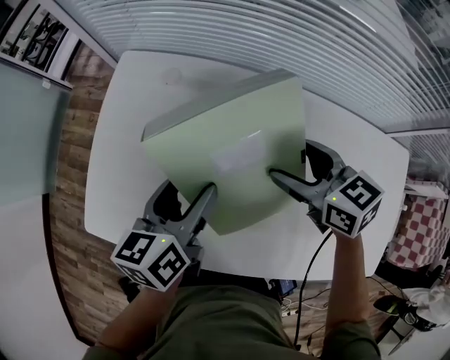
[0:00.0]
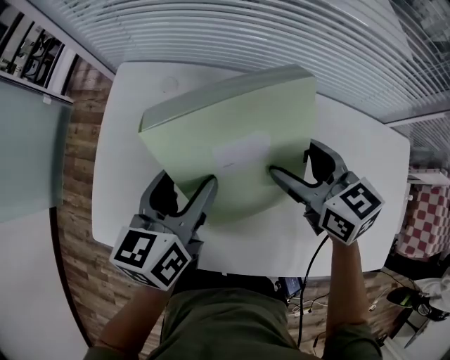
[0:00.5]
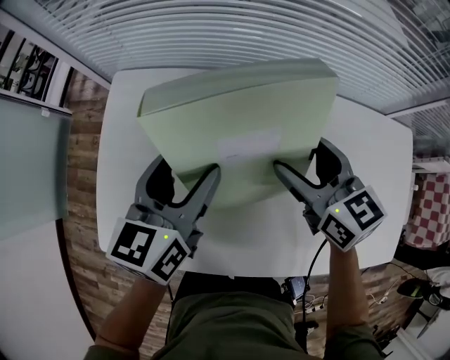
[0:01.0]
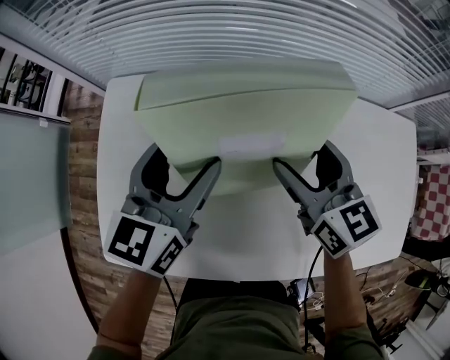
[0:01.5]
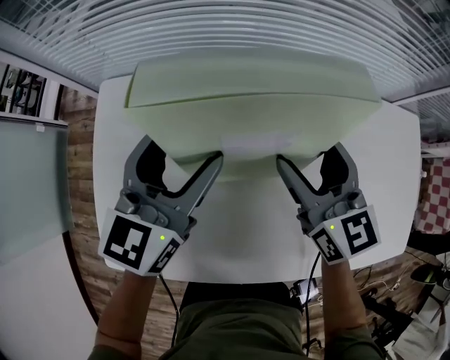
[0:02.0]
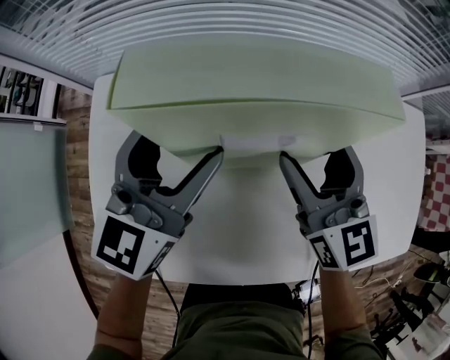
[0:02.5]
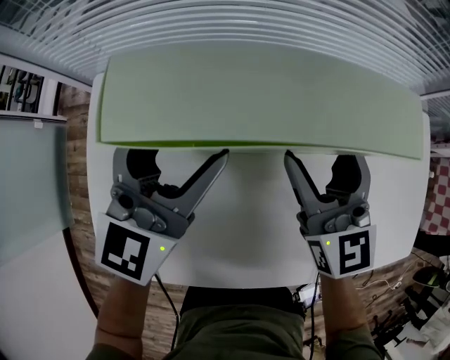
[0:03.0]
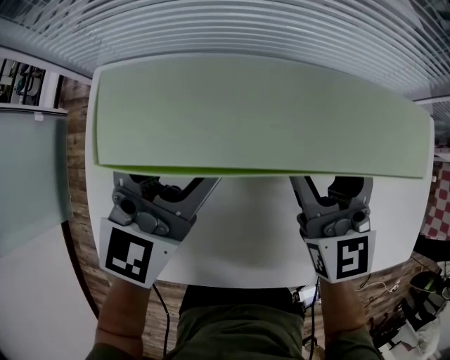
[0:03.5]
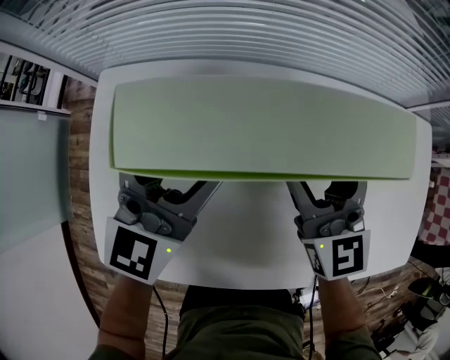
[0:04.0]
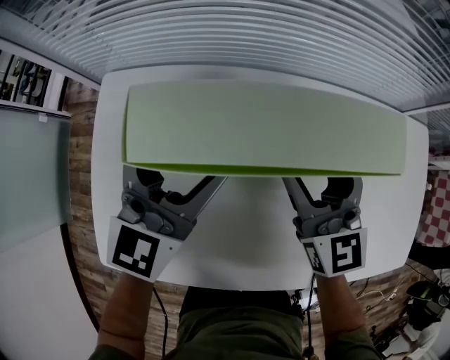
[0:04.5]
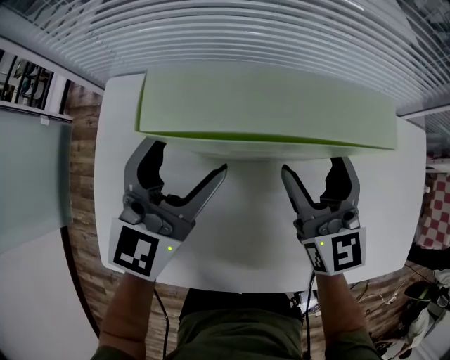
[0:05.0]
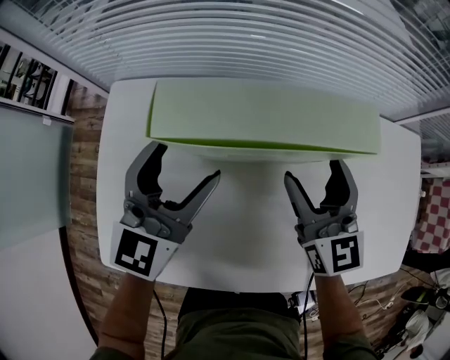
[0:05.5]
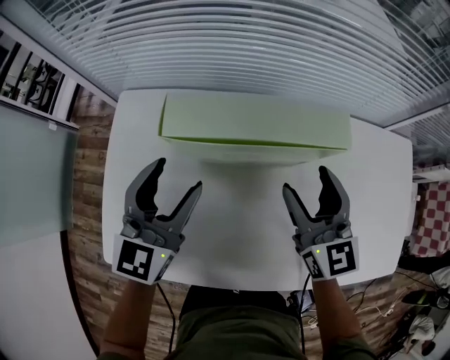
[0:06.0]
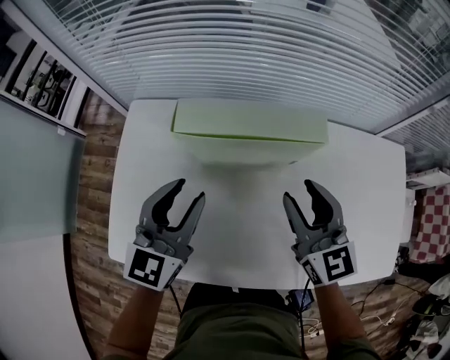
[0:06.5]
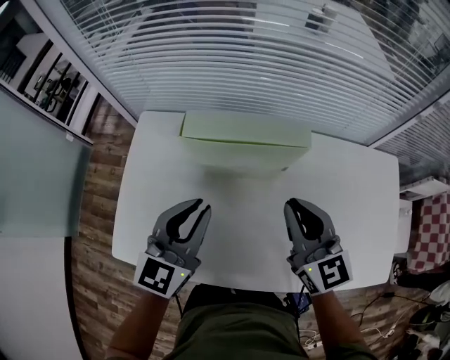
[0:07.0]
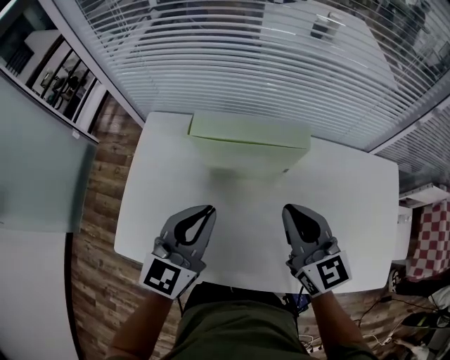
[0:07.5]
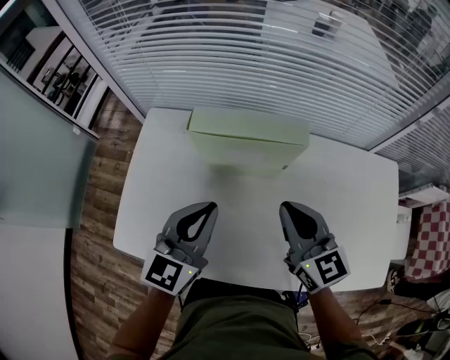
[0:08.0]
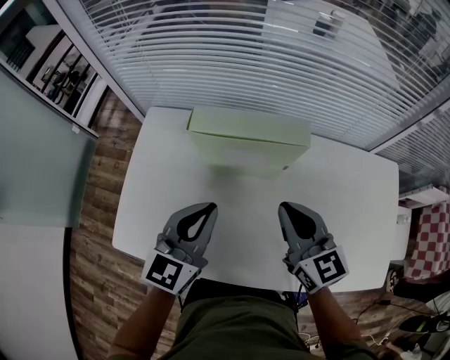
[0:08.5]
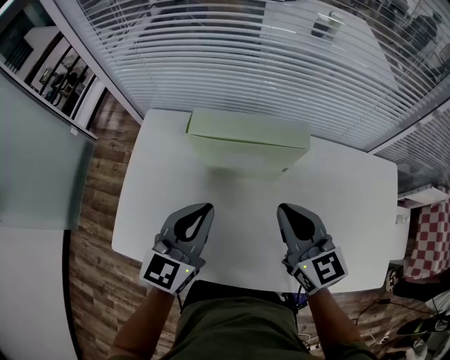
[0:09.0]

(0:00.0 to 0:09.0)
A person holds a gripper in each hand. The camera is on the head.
0:00.0 - 0:02.0: The right gripper turns by about 40 degrees, while the left gripper is displaced forward and upward by some 10 cm, and changes its angle by roughly 40 degrees.
0:02.0 - 0:04.5: The grippers move only a little.
0:04.5 - 0:07.0: The two grippers go roughly 15 cm backward and upward. The left gripper closes up. Meanwhile the right gripper closes up.
0:07.0 - 0:09.0: There are only small adjustments of the grippers.

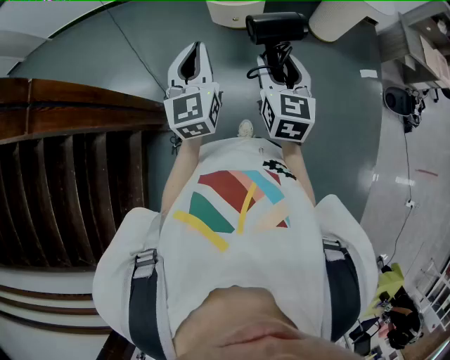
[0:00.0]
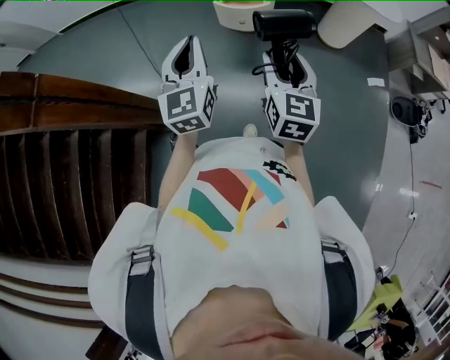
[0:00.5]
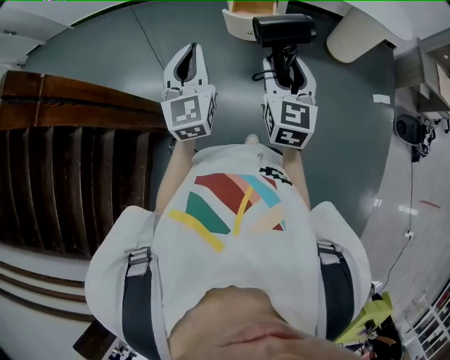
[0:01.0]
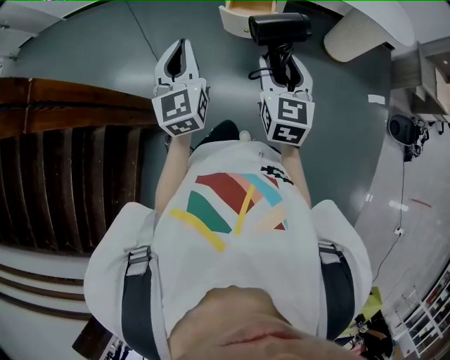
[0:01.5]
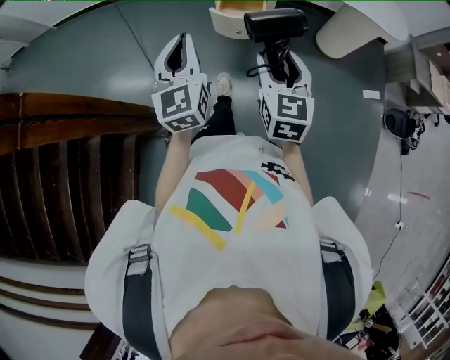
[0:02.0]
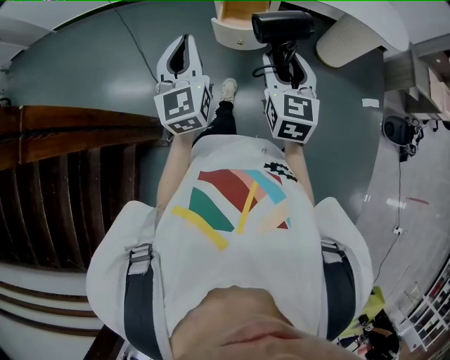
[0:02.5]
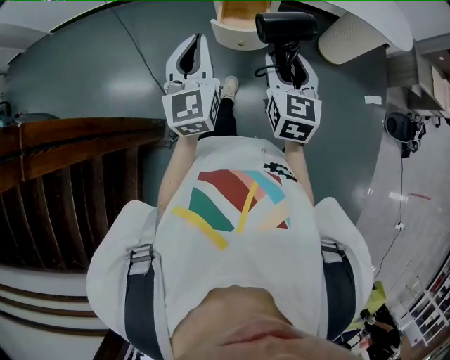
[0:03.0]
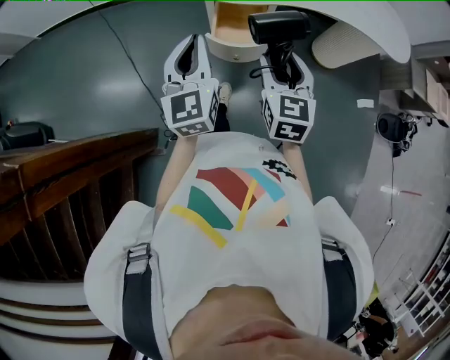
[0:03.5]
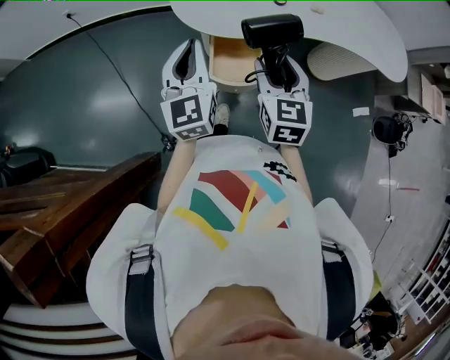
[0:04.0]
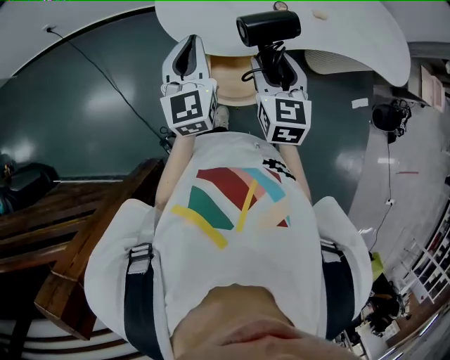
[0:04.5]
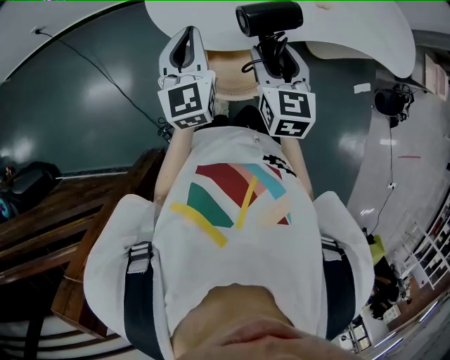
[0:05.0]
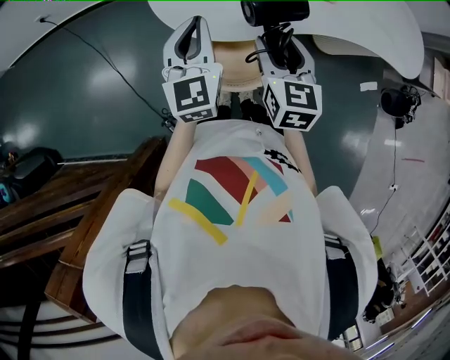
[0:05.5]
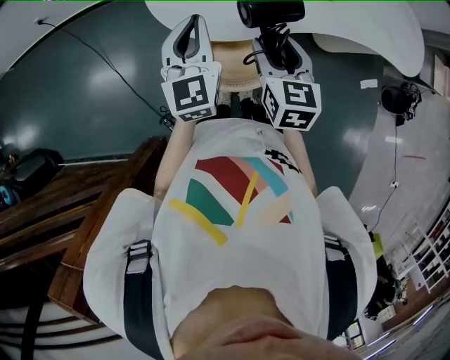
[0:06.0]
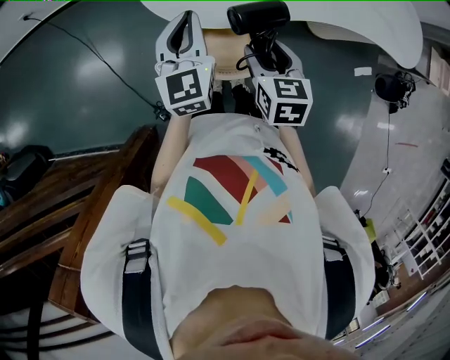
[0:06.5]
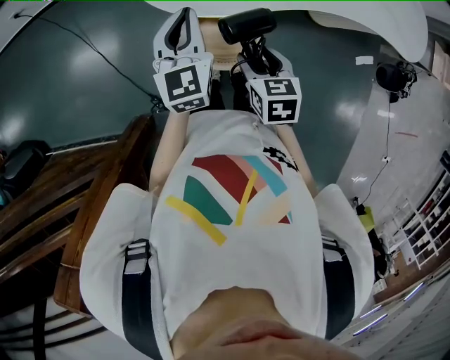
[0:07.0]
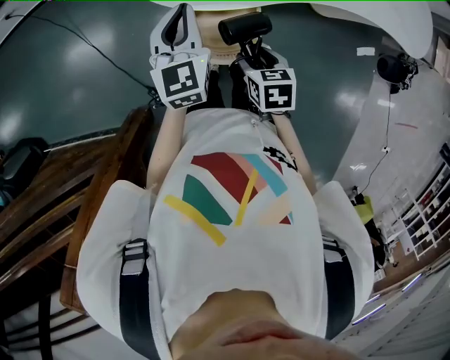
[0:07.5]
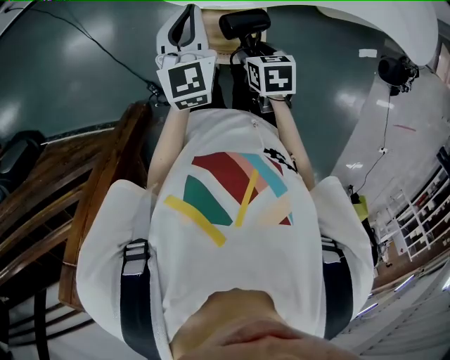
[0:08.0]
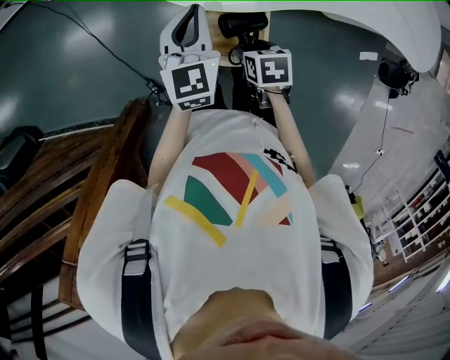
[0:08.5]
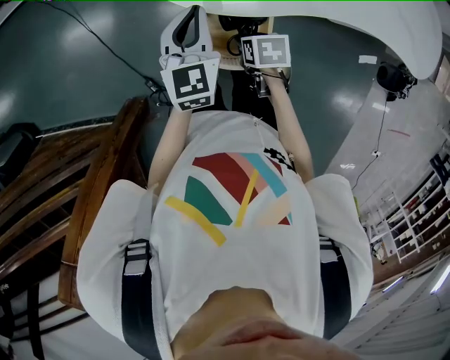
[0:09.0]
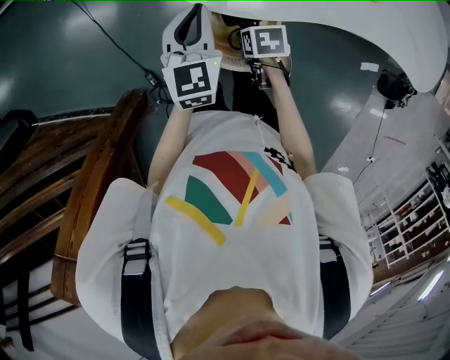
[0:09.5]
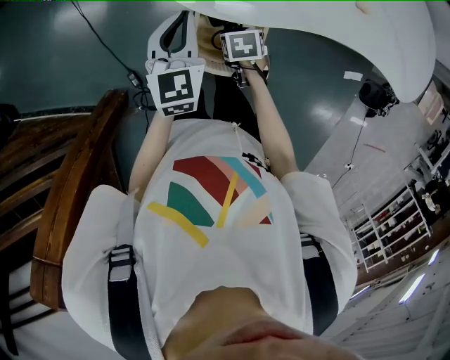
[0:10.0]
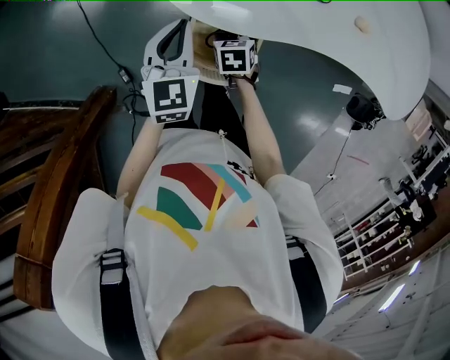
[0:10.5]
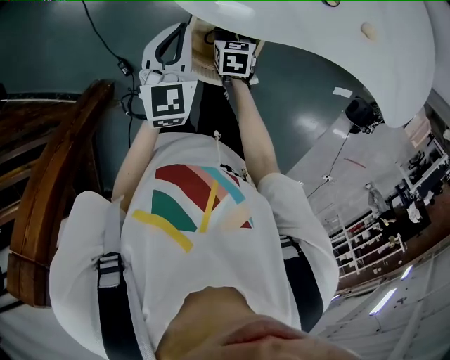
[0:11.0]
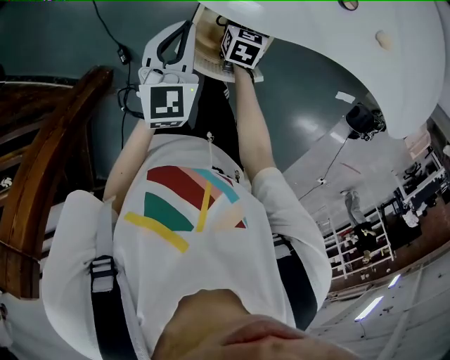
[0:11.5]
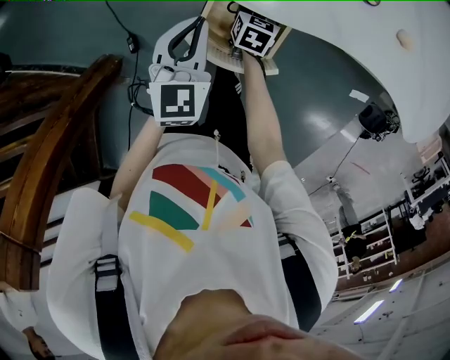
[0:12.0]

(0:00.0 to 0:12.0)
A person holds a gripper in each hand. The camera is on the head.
0:00.0 - 0:02.0: The grippers both shift forward by roughly 10 cm.
0:02.0 - 0:04.0: Both grippers move forward, roughly 30 cm.
0:04.0 - 0:06.0: The grippers both shift forward by roughly 15 cm.
0:06.0 - 0:08.0: The left gripper heads downward, covering roughly 10 cm, while the right gripper is displaced downward and backward by roughly 20 cm, and angles its fingers downward, by some 40 degrees.
0:08.0 - 0:10.0: The right gripper travels downward by roughly 10 cm.
0:10.0 - 0:12.0: The left gripper moves roughly 10 cm. Meanwhile the right gripper travels downward by roughly 5 cm, and changes its angle by roughly 30 degrees.

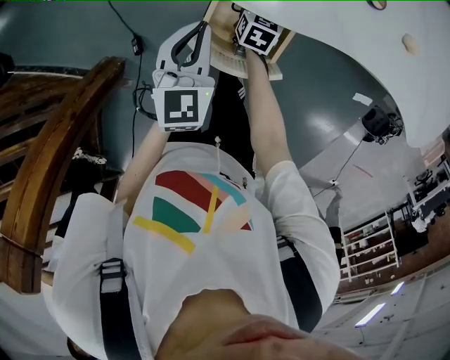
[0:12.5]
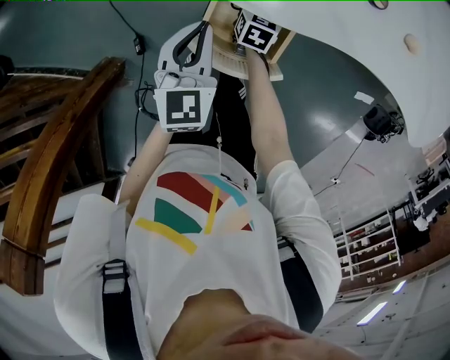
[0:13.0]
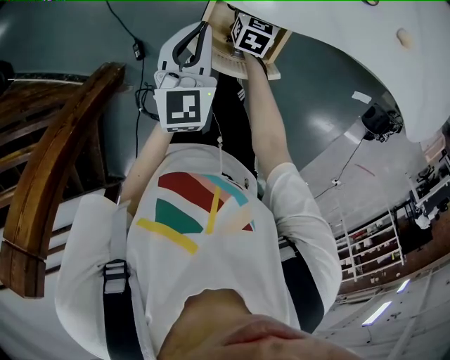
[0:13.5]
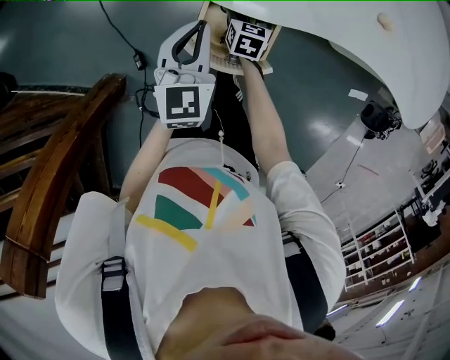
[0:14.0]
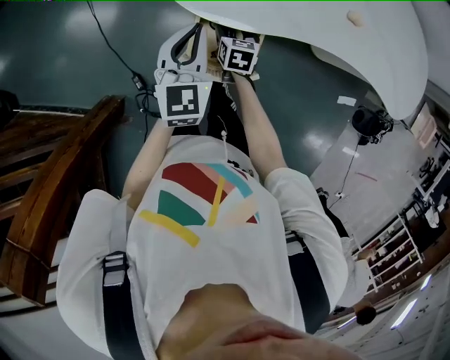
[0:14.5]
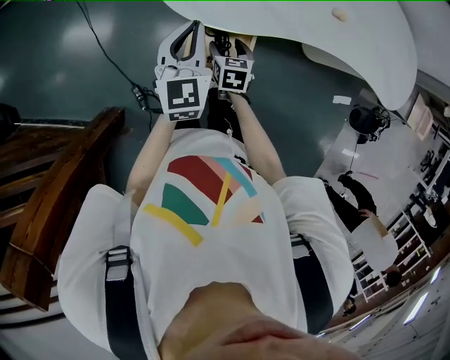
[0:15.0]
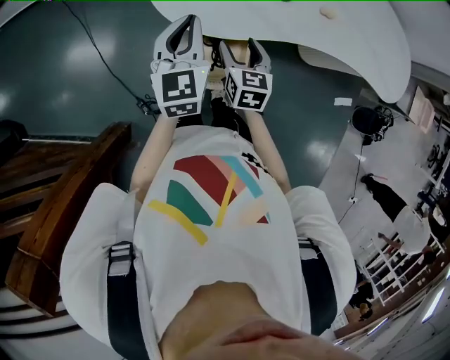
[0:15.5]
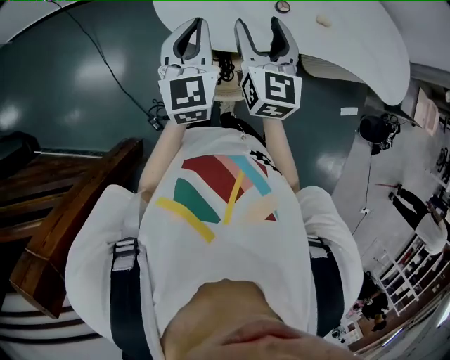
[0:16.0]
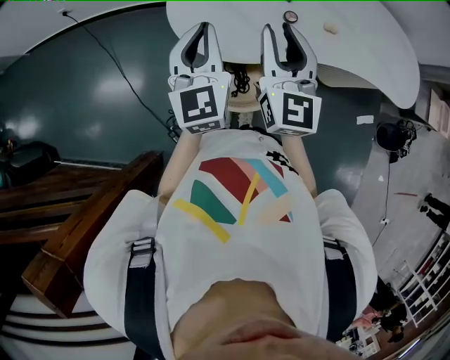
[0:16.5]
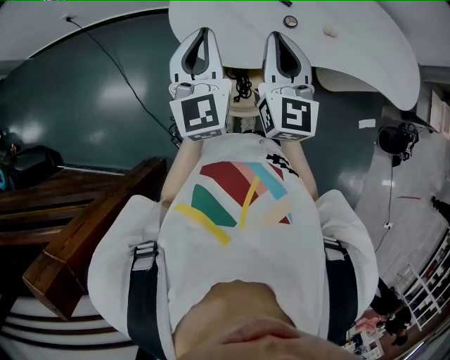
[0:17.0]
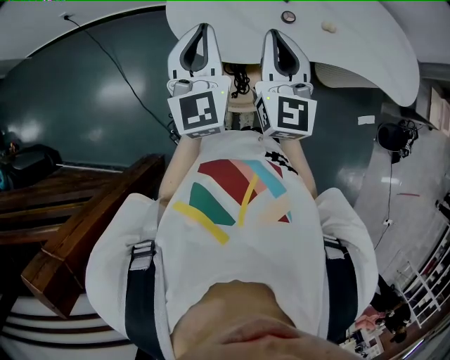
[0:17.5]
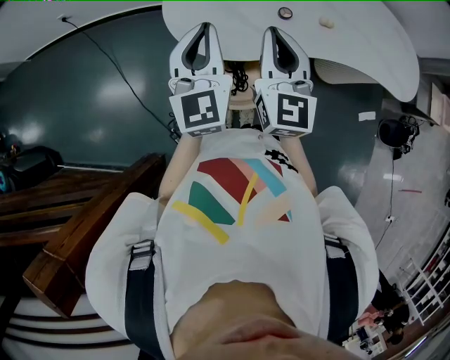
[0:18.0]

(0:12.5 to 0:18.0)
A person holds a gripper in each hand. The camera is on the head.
0:12.5 - 0:14.5: Both grippers travel together upward, about 10 cm.
0:14.5 - 0:16.0: The right gripper shifts some 35 cm upward, and points its fingers approximately 40 degrees further upward. Meanwhile the left gripper moves upward, some 10 cm.
0:16.0 - 0:18.0: The left gripper shifts approximately 5 cm upward. Meanwhile the right gripper shifts by approximately 5 cm, and closes.
